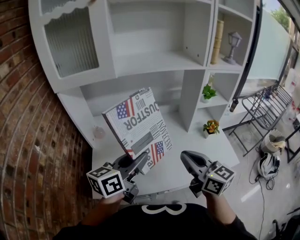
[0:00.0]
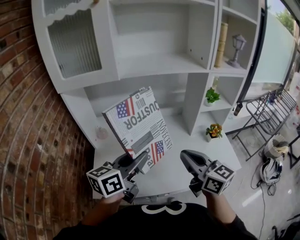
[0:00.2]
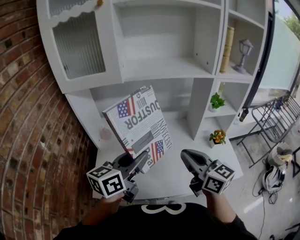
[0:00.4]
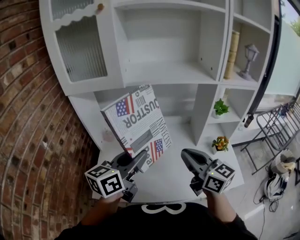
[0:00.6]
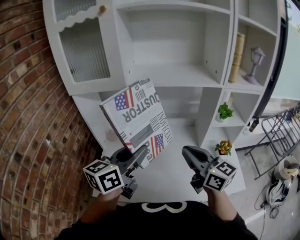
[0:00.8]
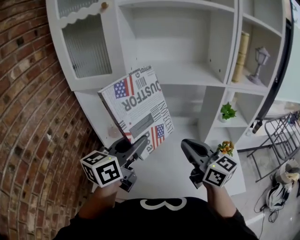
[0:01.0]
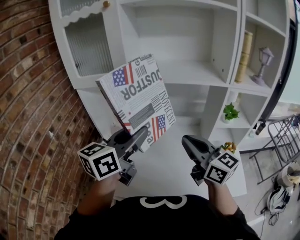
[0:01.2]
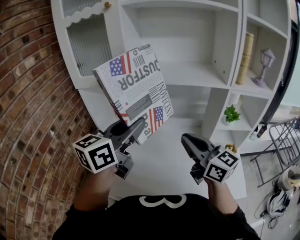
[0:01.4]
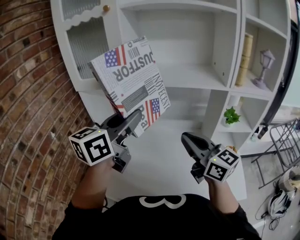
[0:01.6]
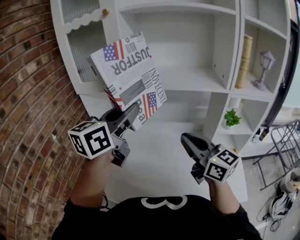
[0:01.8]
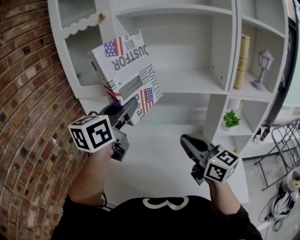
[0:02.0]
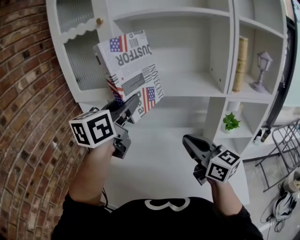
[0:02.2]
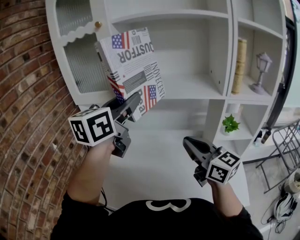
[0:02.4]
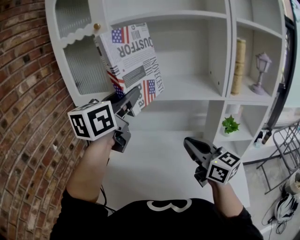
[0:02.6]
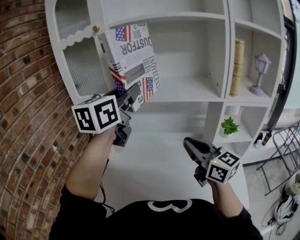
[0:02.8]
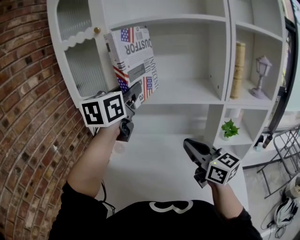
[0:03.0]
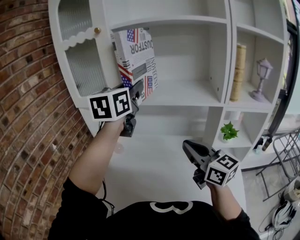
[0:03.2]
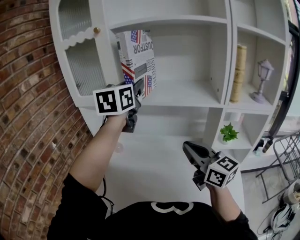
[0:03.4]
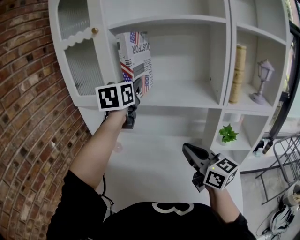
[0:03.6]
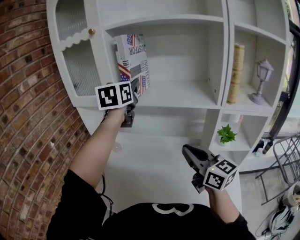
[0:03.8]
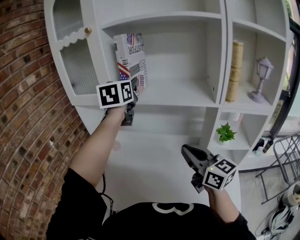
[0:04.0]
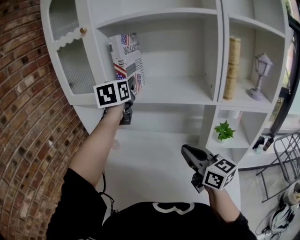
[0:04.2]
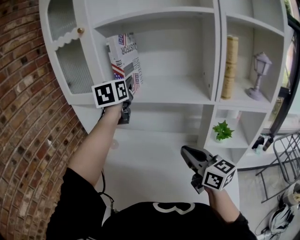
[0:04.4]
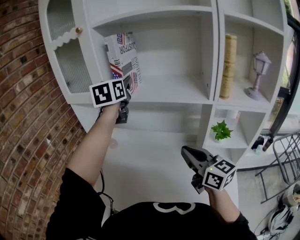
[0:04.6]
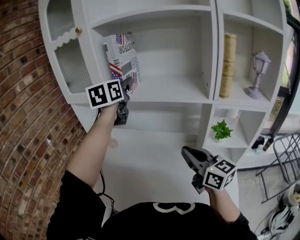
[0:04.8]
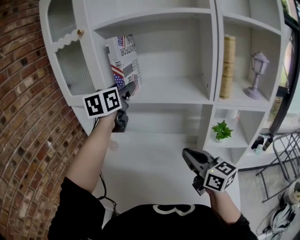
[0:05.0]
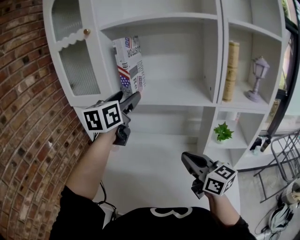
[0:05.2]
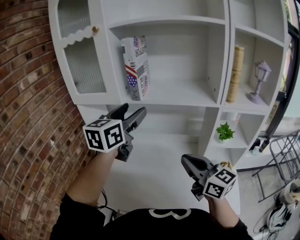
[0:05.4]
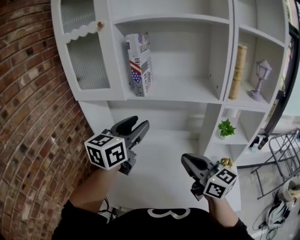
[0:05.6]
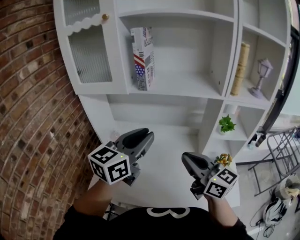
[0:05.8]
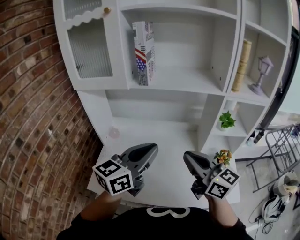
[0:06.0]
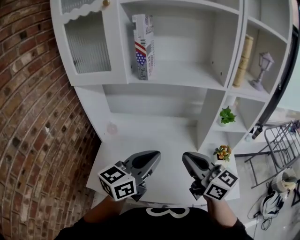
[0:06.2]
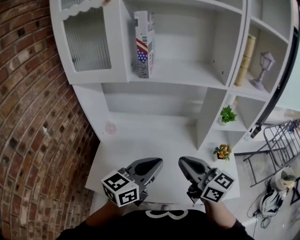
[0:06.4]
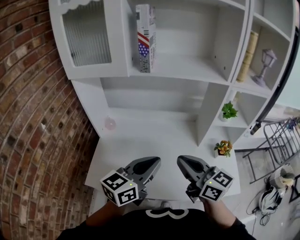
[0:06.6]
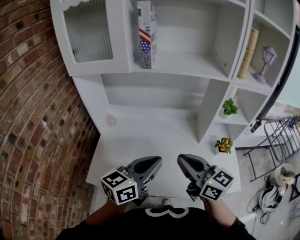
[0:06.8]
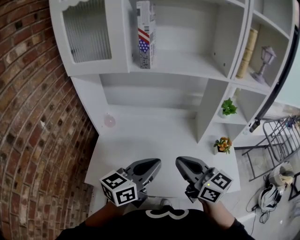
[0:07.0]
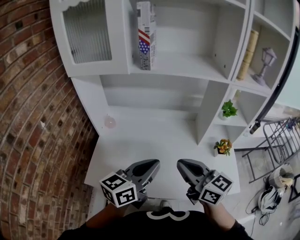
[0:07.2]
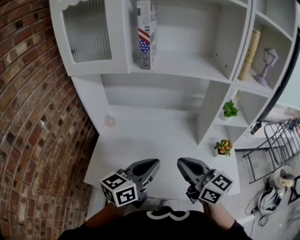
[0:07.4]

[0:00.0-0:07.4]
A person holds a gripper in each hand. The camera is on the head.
0:00.0 to 0:01.4: The left gripper goes roughly 15 cm upward and forward, and rotates about 20 degrees. The right gripper heads forward and upward, covering approximately 15 cm, and rotates some 20 degrees.
0:01.4 to 0:03.0: The right gripper changes place by roughly 5 cm. The left gripper travels upward and forward by approximately 20 cm, and changes its angle by roughly 20 degrees.
0:03.0 to 0:04.4: The left gripper is displaced forward by roughly 10 cm; the right gripper travels to the right by roughly 5 cm.
0:04.4 to 0:06.0: The left gripper heads backward and downward, covering roughly 30 cm, changes its angle by about 40 degrees, and closes its fingers. Meanwhile the right gripper heads to the left and backward, covering approximately 10 cm.
0:06.0 to 0:07.4: Both grippers move downward, roughly 10 cm.

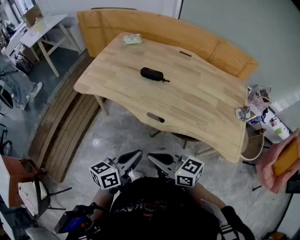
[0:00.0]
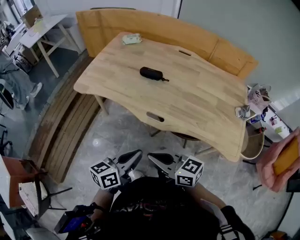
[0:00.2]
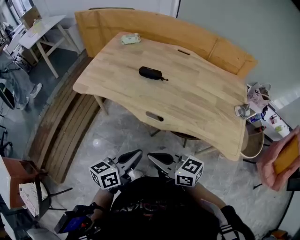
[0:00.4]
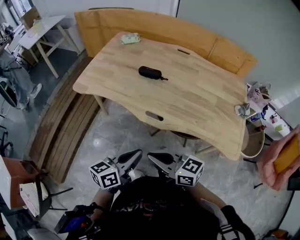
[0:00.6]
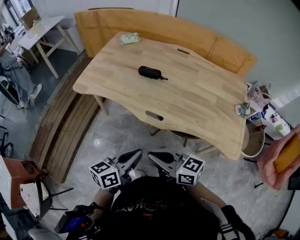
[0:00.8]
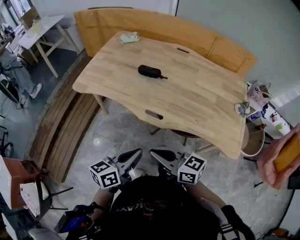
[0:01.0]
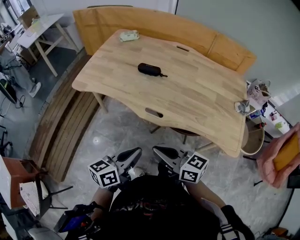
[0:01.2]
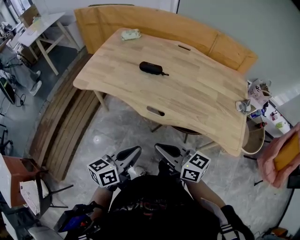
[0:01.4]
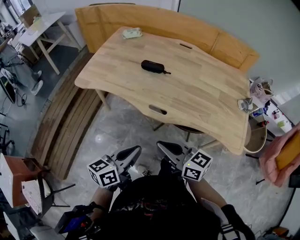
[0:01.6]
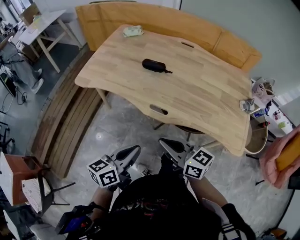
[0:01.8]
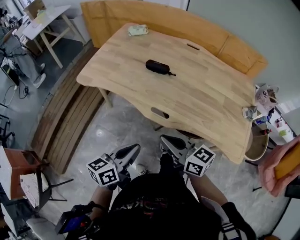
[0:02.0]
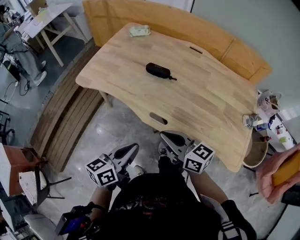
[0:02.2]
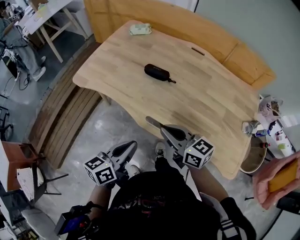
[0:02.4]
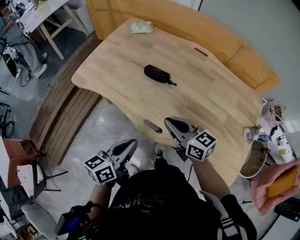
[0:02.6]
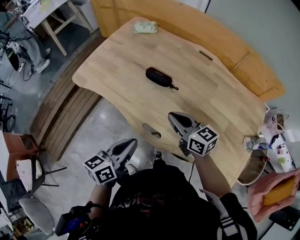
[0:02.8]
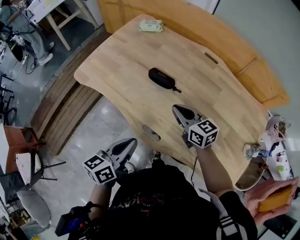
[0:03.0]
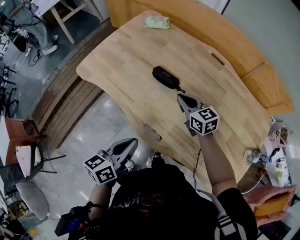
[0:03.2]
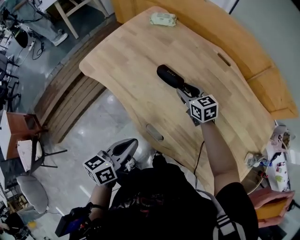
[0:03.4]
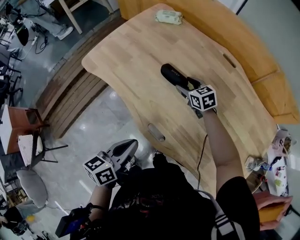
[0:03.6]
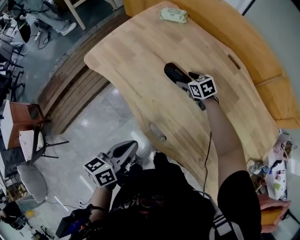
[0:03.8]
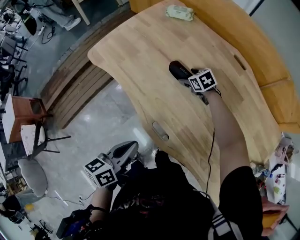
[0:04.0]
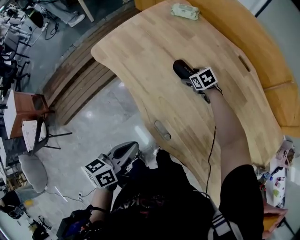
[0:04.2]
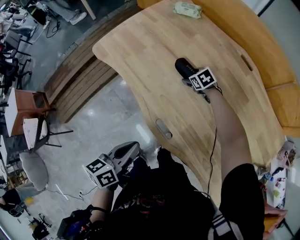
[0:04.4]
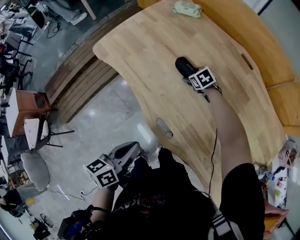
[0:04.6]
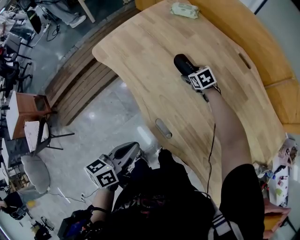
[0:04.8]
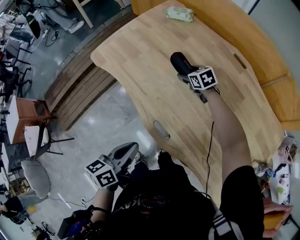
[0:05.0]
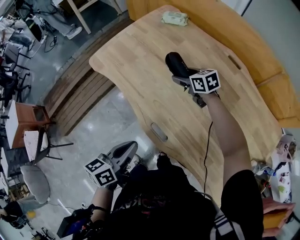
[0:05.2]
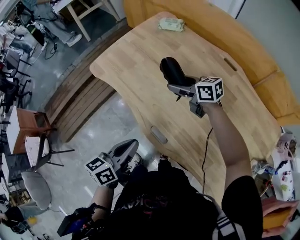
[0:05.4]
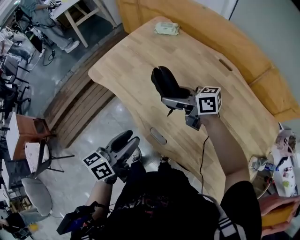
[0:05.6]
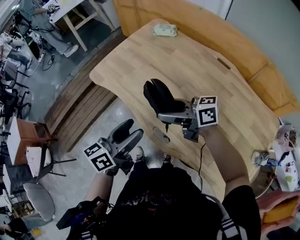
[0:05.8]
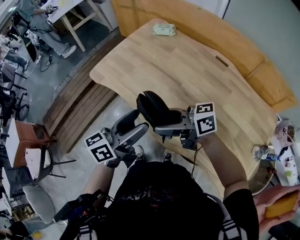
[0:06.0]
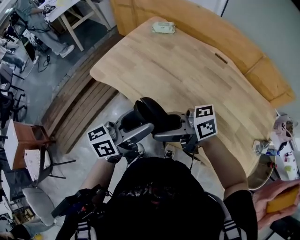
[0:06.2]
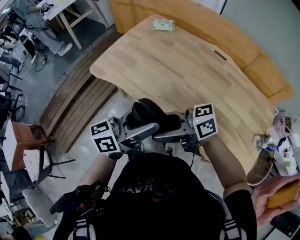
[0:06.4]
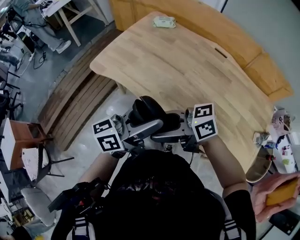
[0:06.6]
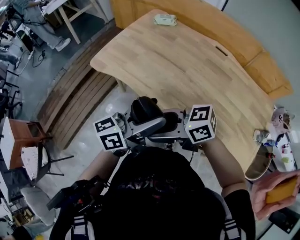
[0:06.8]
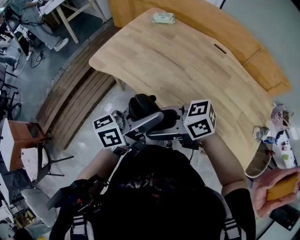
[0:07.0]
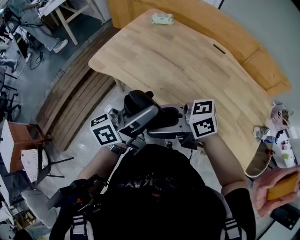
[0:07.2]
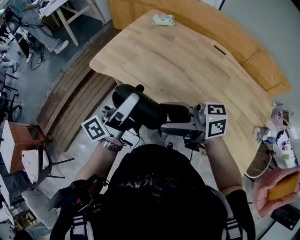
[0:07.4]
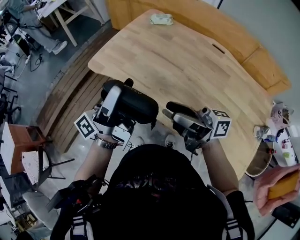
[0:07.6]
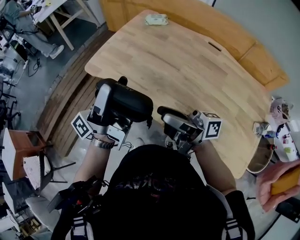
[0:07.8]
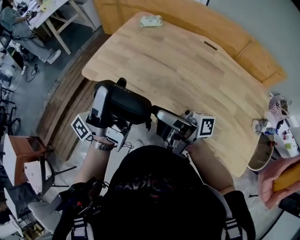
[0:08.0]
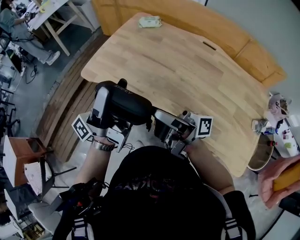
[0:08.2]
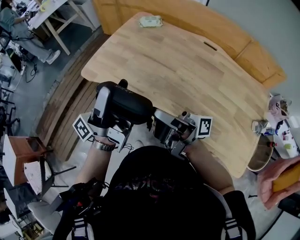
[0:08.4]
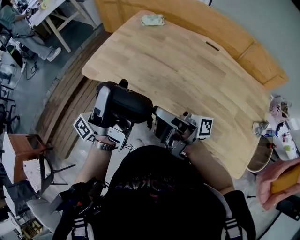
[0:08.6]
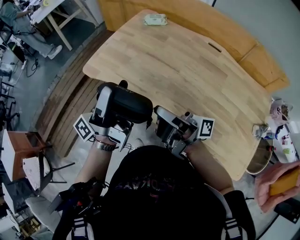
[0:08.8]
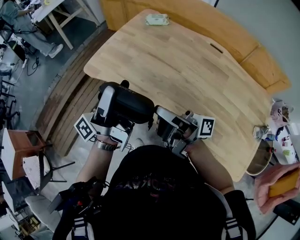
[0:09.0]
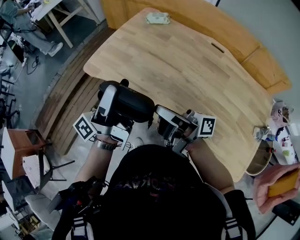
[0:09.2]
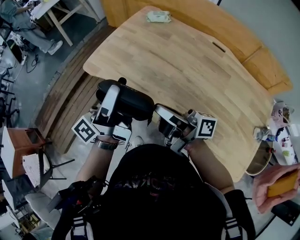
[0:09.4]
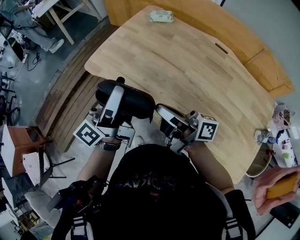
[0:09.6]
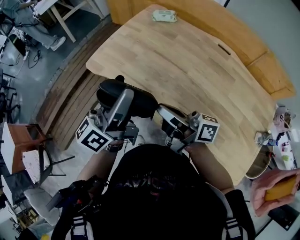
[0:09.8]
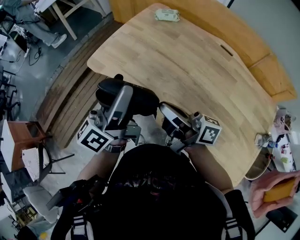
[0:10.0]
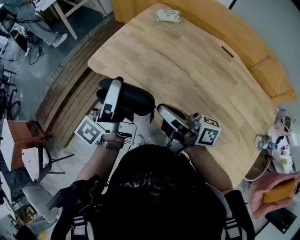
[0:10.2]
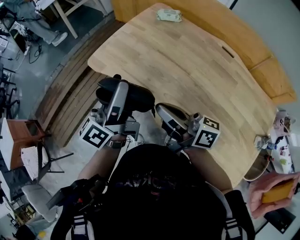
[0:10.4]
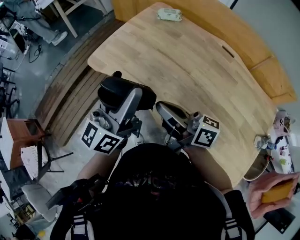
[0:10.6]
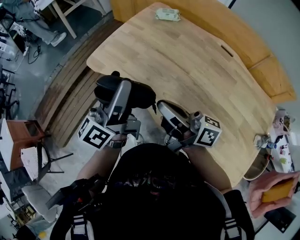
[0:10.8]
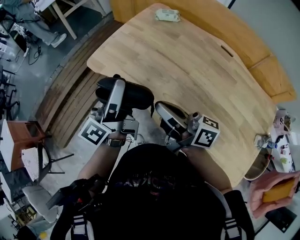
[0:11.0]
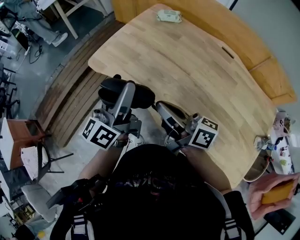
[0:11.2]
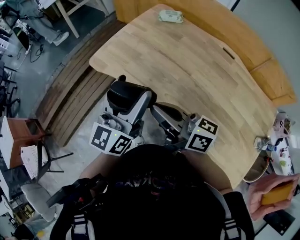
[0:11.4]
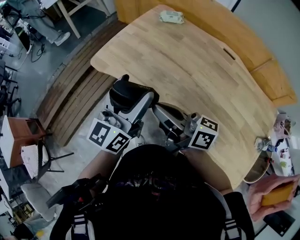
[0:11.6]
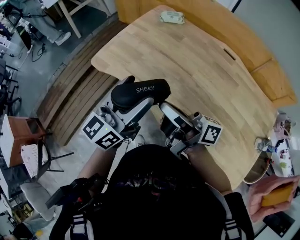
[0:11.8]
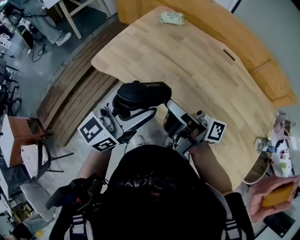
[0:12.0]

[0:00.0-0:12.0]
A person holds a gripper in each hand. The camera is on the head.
0:00.0 to 0:01.6: There are only small adjustments of the grippers.
0:01.6 to 0:03.0: The right gripper goes about 35 cm forward and to the right. Meanwhile the left gripper is displaced forward by some 20 cm.
0:03.0 to 0:04.4: The right gripper goes approximately 30 cm downward and forward, angles its fingers downward, by about 40 degrees, and opens up.
0:04.4 to 0:06.0: The right gripper heads upward, covering roughly 30 cm, and tilts its fingers about 60 degrees upward, while the left gripper goes about 10 cm upward, turns by roughly 30 degrees, and opens up.
0:06.0 to 0:07.6: The right gripper swivels about 30 degrees, while the left gripper changes place by roughly 10 cm, and turns by roughly 40 degrees.
0:07.6 to 0:09.0: The right gripper closes.
0:09.0 to 0:10.4: The right gripper moves roughly 5 cm, and rotates some 30 degrees; the left gripper moves forward, about 5 cm, and swivels roughly 40 degrees.
0:10.4 to 0:12.0: The left gripper goes some 10 cm backward and to the right, and rotates some 40 degrees. The right gripper turns by about 20 degrees.

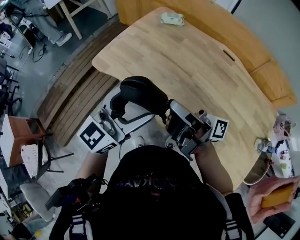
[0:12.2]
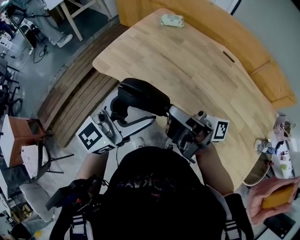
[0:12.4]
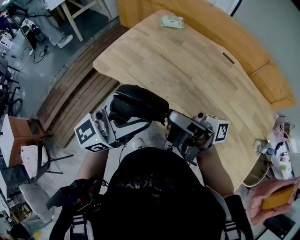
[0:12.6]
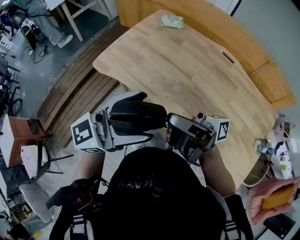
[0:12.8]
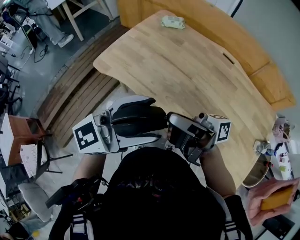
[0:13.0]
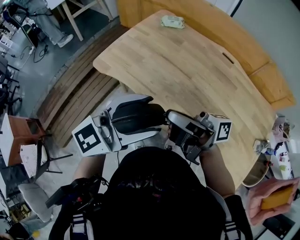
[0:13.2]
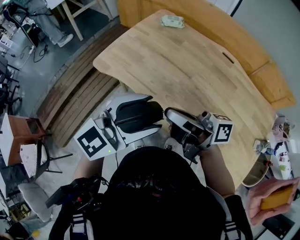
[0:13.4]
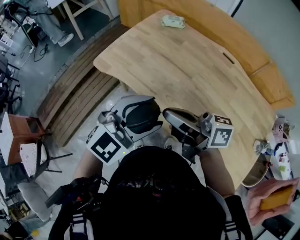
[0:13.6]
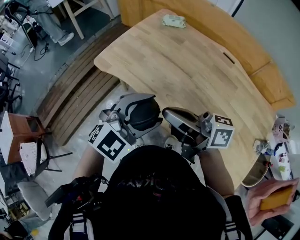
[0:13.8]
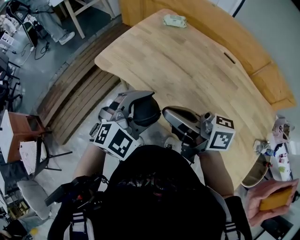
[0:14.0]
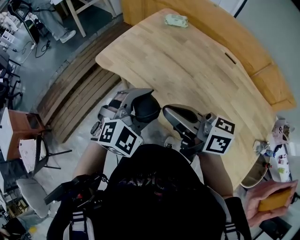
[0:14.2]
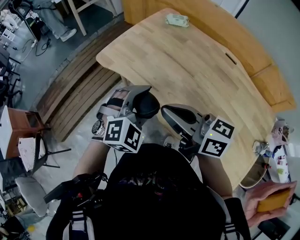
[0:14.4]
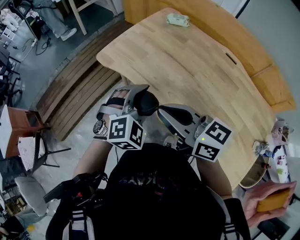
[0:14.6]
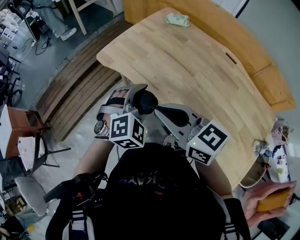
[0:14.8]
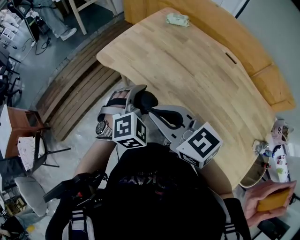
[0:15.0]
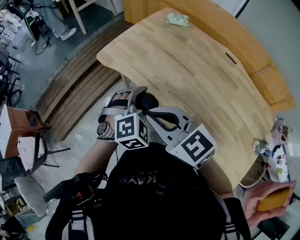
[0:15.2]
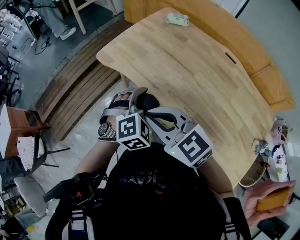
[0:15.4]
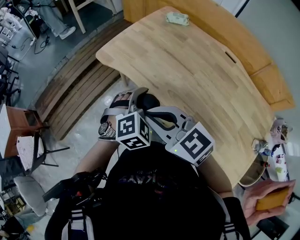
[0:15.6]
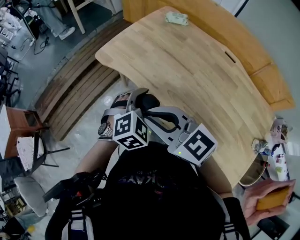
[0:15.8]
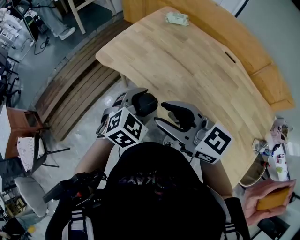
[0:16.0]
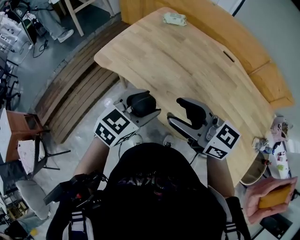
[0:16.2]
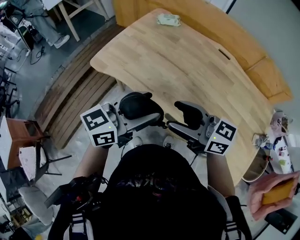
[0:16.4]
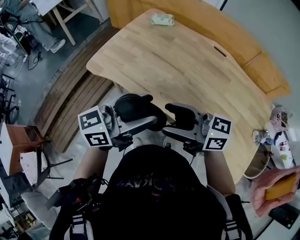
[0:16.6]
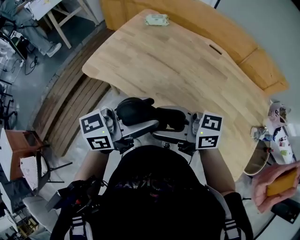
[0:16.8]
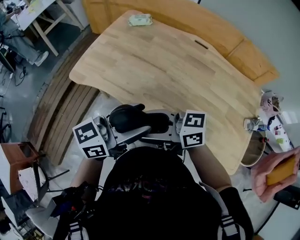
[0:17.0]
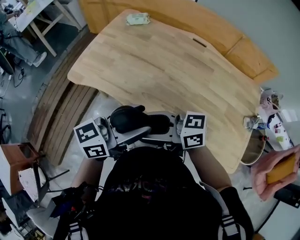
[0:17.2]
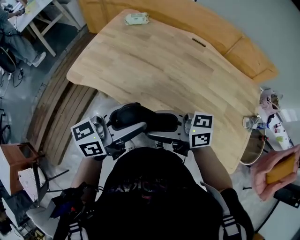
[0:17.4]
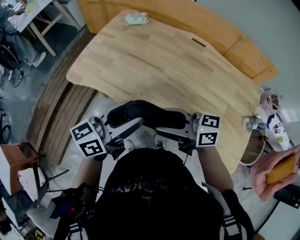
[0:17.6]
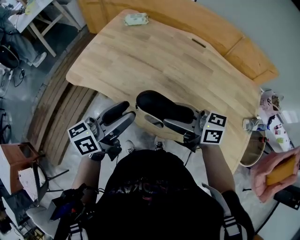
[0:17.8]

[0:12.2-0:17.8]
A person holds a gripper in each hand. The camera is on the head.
0:12.2 to 0:13.6: The left gripper shifts by approximately 5 cm, and rotates roughly 30 degrees. The right gripper turns by some 30 degrees.
0:13.6 to 0:15.0: The left gripper moves downward and forward, some 10 cm, and turns by roughly 40 degrees; the right gripper travels to the left by approximately 5 cm, and twists roughly 50 degrees counterclockwise, seen from behind.
0:15.0 to 0:16.4: The left gripper is displaced upward by roughly 10 cm, and tips its fingers upward by some 40 degrees, while the right gripper moves to the right, approximately 10 cm, swivels some 20 degrees, and opens up.
0:16.4 to 0:17.8: The right gripper shifts by about 10 cm.
